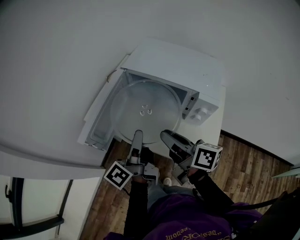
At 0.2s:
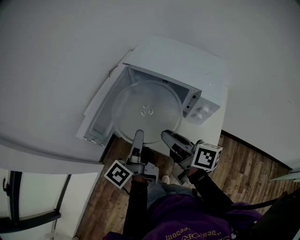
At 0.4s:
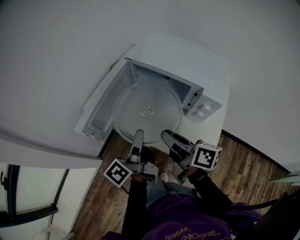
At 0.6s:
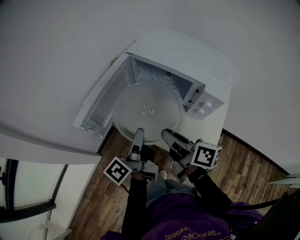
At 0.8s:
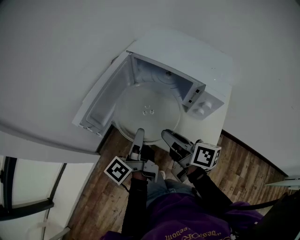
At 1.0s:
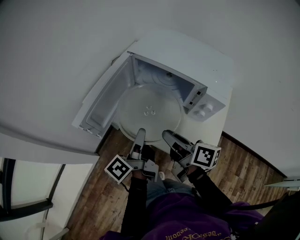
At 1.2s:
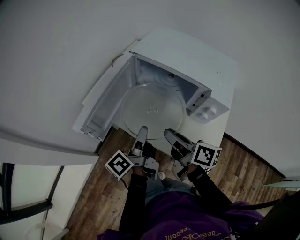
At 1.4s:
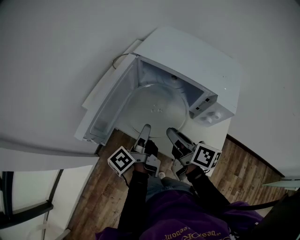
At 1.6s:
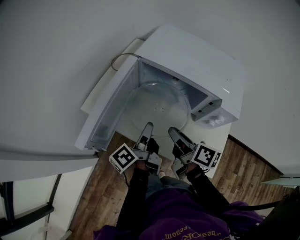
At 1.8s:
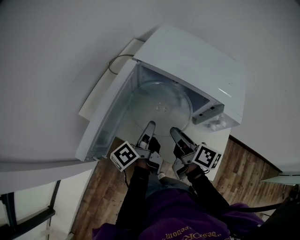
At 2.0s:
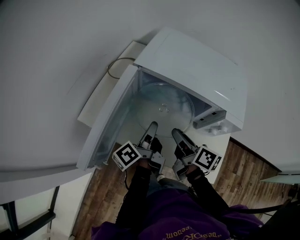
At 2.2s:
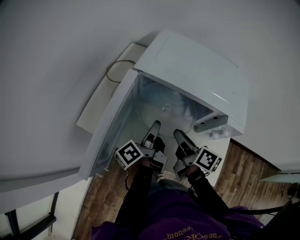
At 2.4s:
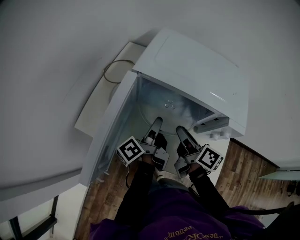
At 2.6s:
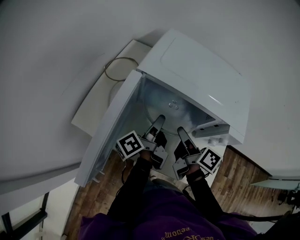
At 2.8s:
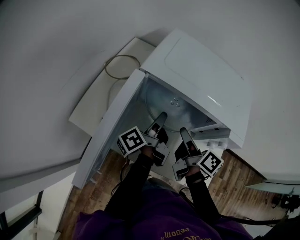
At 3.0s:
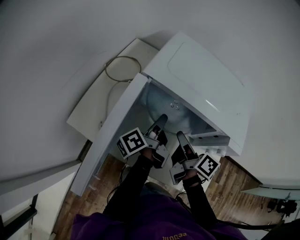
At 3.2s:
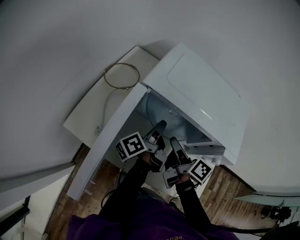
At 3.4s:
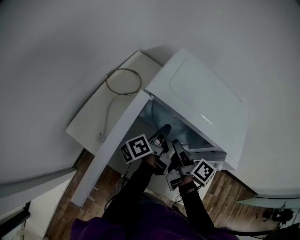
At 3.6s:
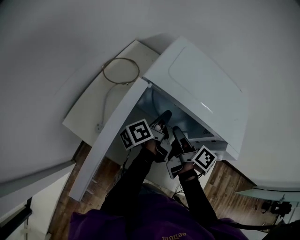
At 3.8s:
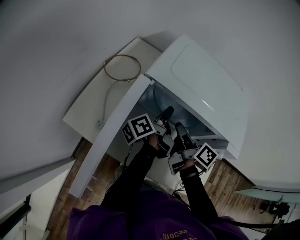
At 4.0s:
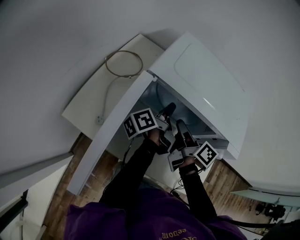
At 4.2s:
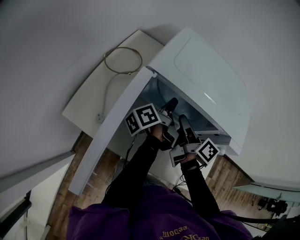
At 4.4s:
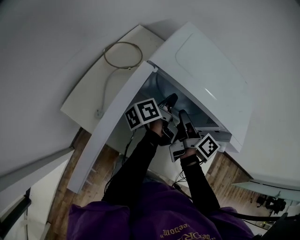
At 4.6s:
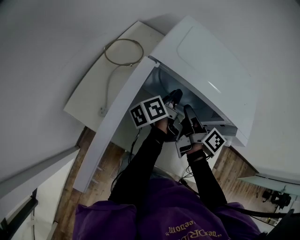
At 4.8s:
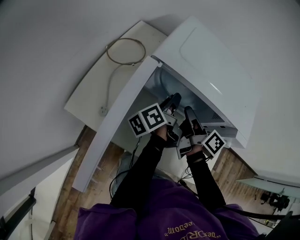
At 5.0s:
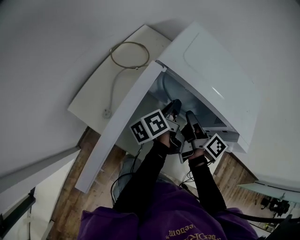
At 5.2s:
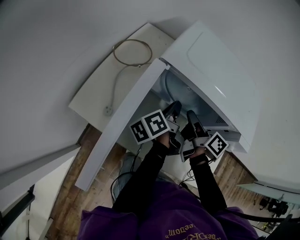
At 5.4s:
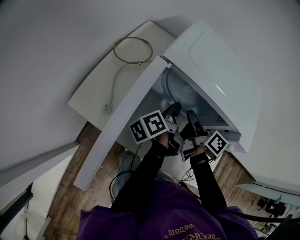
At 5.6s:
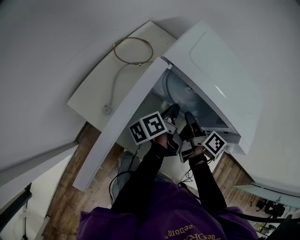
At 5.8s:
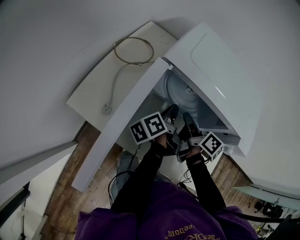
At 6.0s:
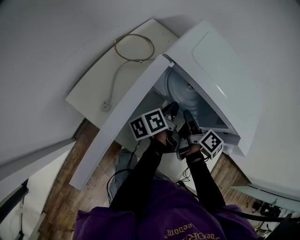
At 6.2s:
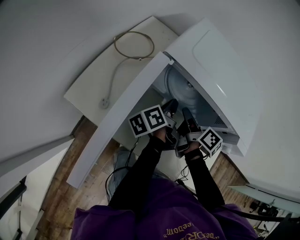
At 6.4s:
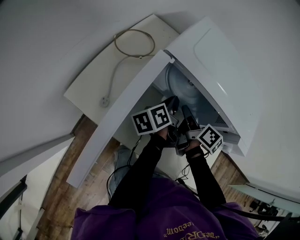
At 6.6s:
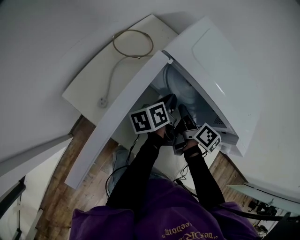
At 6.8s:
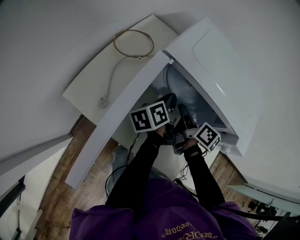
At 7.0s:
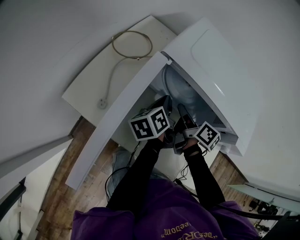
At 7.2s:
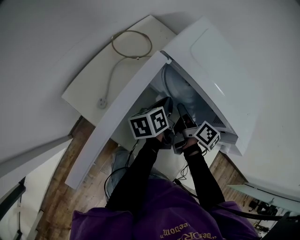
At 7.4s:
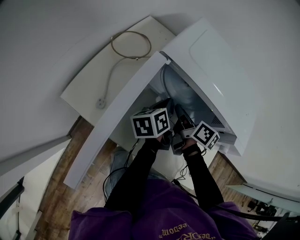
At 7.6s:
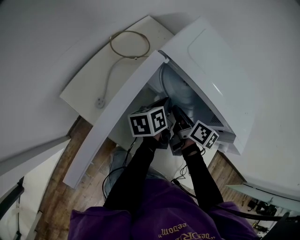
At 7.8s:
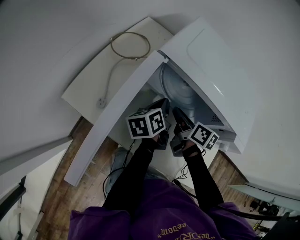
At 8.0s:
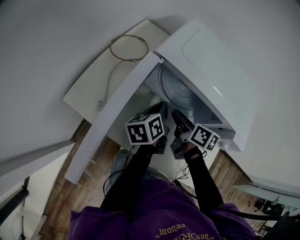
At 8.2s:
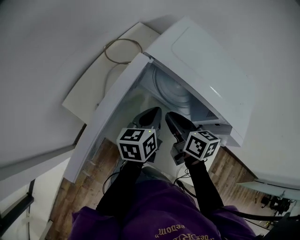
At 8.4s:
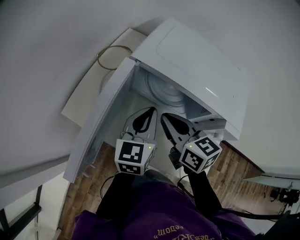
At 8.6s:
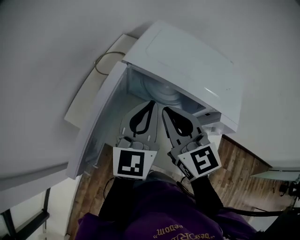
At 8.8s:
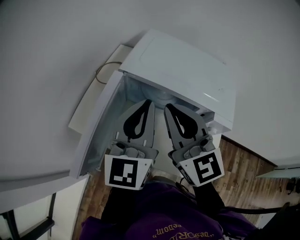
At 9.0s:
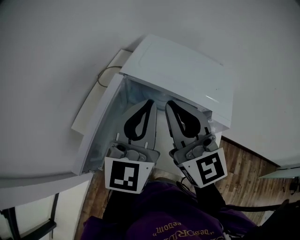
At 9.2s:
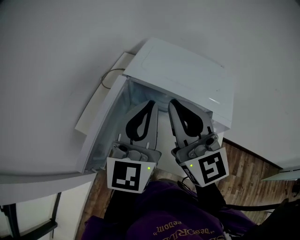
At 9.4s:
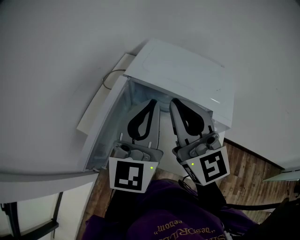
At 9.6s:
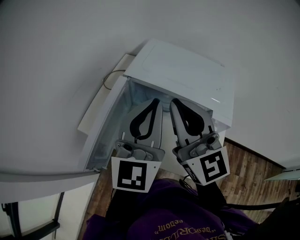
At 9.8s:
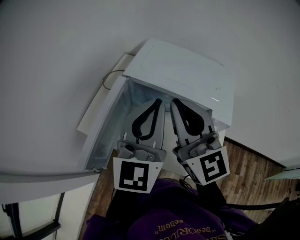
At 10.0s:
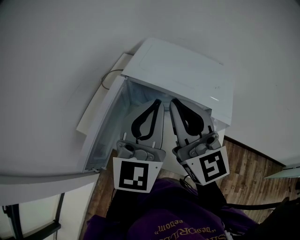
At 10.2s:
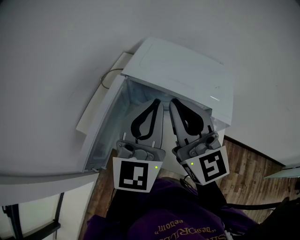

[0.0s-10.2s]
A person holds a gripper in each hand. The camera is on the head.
0.0s to 1.4s: Both grippers travel together downward, some 10 cm.
1.4s to 3.0s: Both grippers travel together forward, approximately 15 cm. The right gripper changes its angle by about 20 degrees.
3.0s to 4.4s: Both grippers travel together forward, about 5 cm.
4.4s to 5.8s: The left gripper shifts by about 5 cm.
5.8s to 7.2s: The grippers stay close to where they were, moving slightly.
7.2s to 8.8s: Both grippers travel together upward, roughly 25 cm. The right gripper rotates around the line of its fingers by roughly 70 degrees, counterclockwise from behind, and closes its fingers. The left gripper rolls clockwise, seen from behind, by some 60 degrees.
8.8s to 10.2s: The right gripper moves about 5 cm; the left gripper changes place by approximately 5 cm.

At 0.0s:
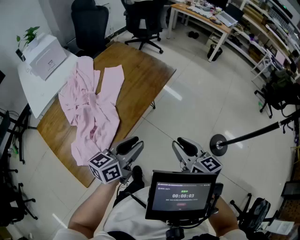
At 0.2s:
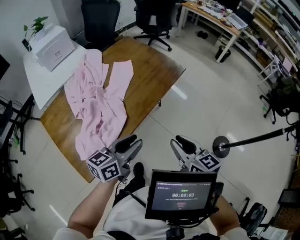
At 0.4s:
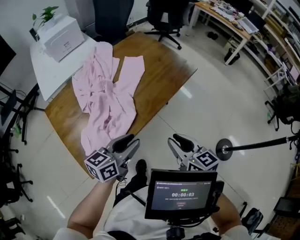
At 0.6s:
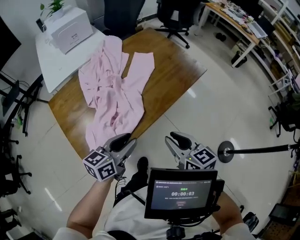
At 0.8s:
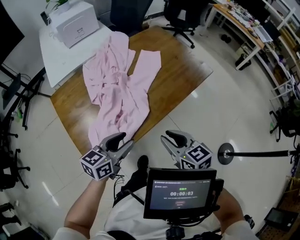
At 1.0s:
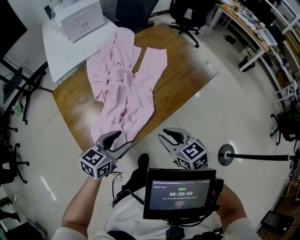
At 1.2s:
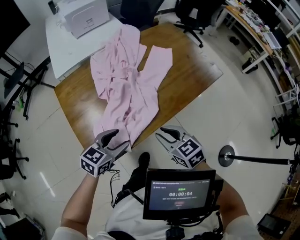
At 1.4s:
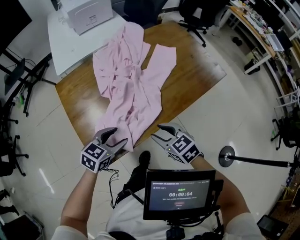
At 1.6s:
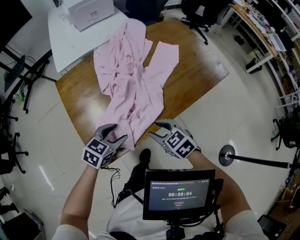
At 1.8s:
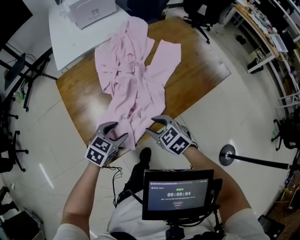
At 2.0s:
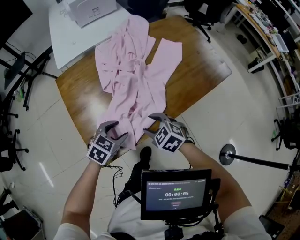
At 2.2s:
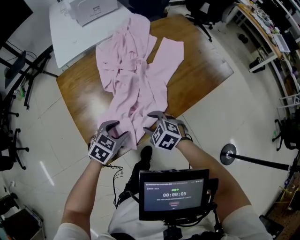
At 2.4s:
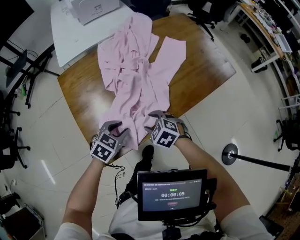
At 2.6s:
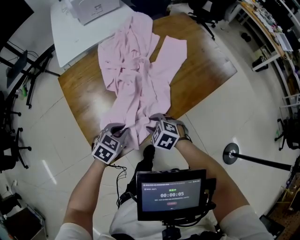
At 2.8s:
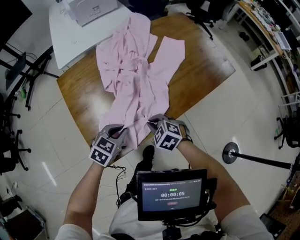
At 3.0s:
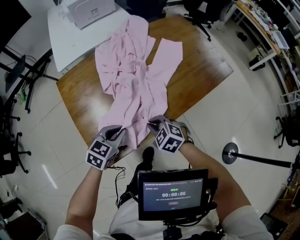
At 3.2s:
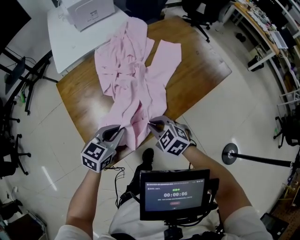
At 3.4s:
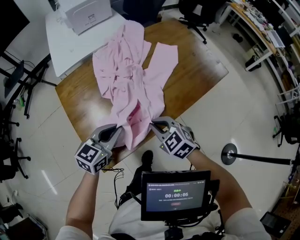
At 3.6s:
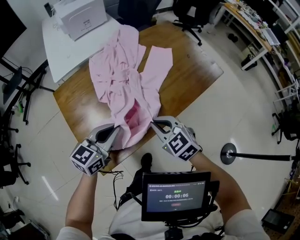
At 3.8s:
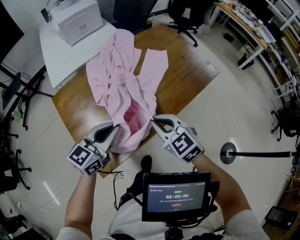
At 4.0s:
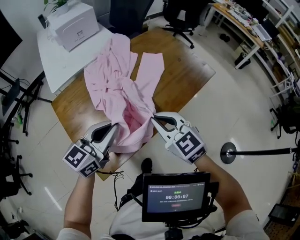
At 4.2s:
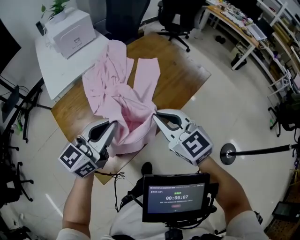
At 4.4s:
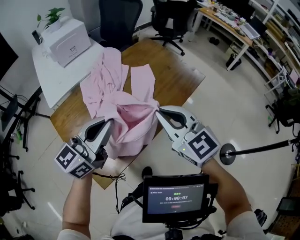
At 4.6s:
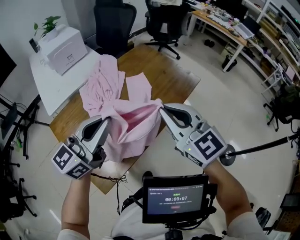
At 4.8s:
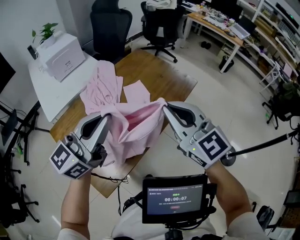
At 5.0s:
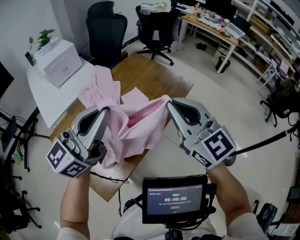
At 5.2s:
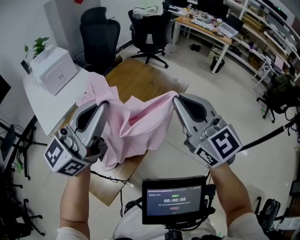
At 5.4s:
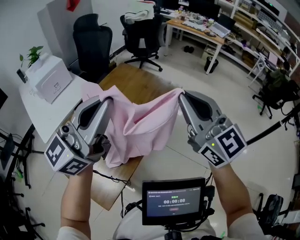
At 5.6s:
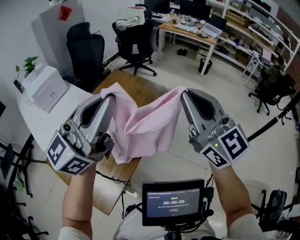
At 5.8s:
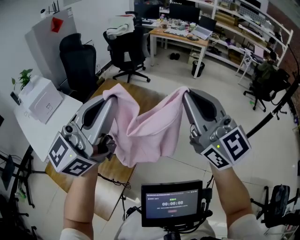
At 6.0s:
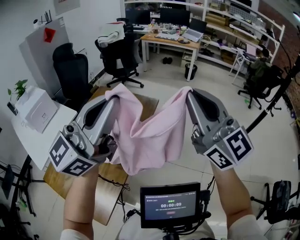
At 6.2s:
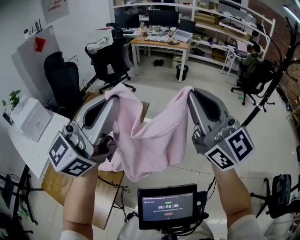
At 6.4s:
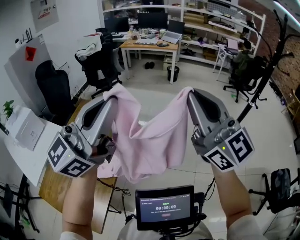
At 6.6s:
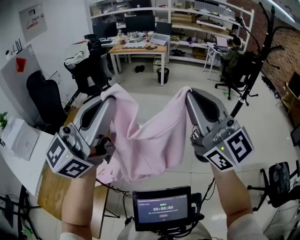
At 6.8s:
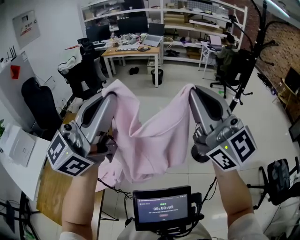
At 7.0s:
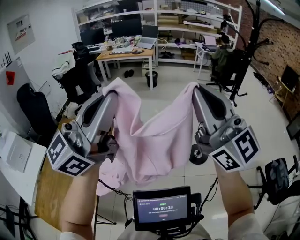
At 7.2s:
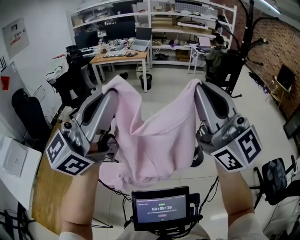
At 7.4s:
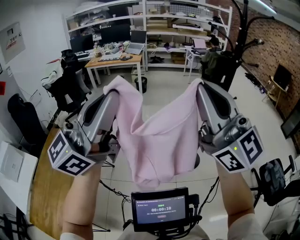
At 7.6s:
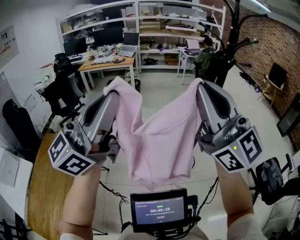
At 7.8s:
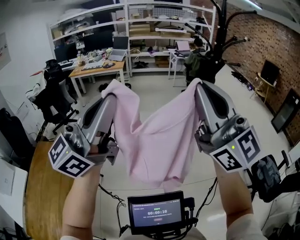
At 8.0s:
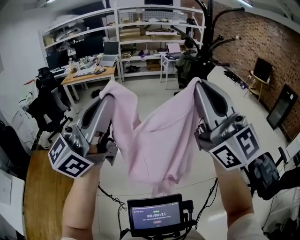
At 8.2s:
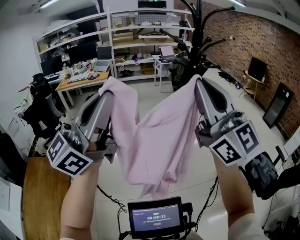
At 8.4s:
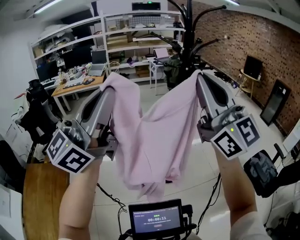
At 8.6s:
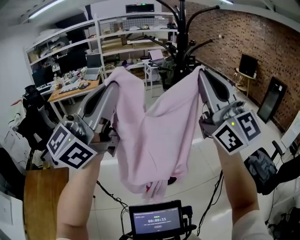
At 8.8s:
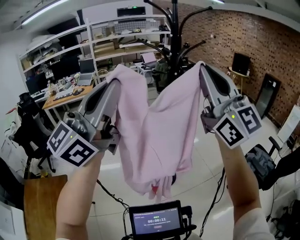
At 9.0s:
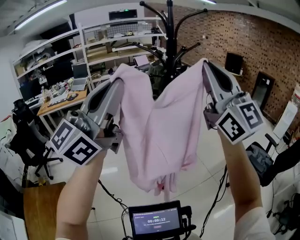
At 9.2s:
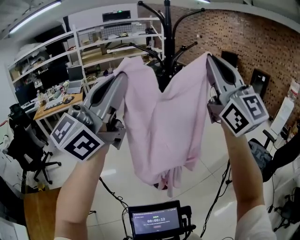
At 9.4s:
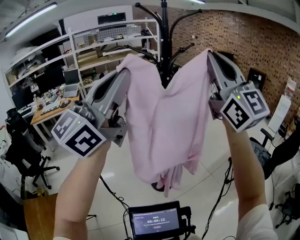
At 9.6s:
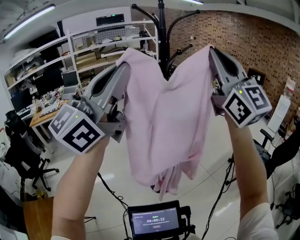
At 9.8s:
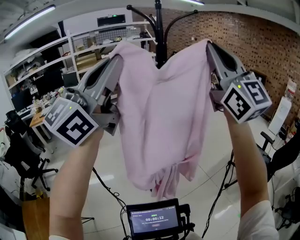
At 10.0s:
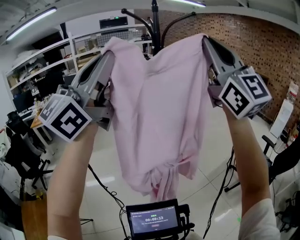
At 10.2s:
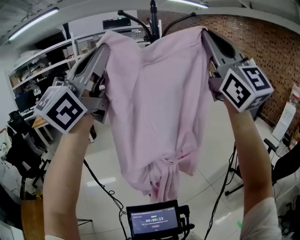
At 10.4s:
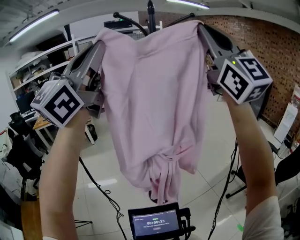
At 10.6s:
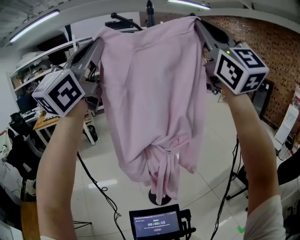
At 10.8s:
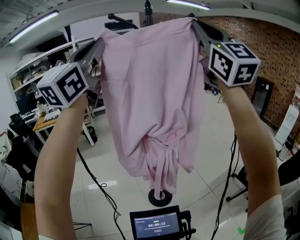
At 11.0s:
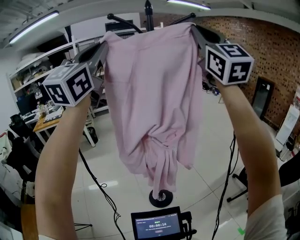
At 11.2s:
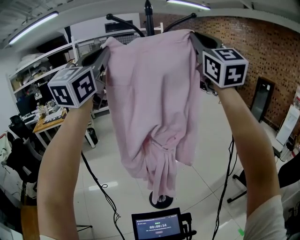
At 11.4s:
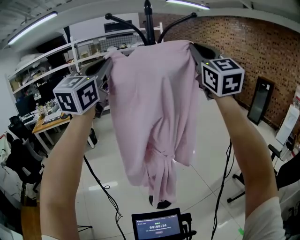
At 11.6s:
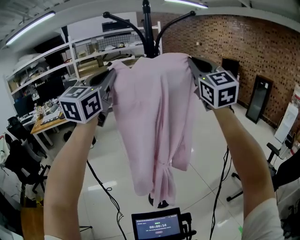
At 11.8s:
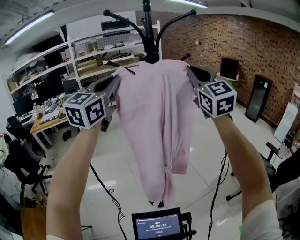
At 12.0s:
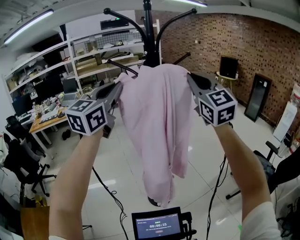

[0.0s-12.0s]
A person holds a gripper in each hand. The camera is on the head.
0.0s to 1.6s: The right gripper moves some 30 cm, and turns by about 60 degrees. The left gripper shifts by about 30 cm, points its fingers some 30 degrees further downward, and opens.
1.6s to 3.0s: The right gripper closes. Meanwhile the left gripper closes its fingers.
3.0s to 4.4s: Both grippers move upward, some 30 cm. The left gripper points its fingers some 40 degrees further upward. Meanwhile the right gripper angles its fingers upward, by roughly 40 degrees.
4.4s to 6.0s: The right gripper shifts by approximately 35 cm, and angles its fingers upward, by some 30 degrees, while the left gripper goes about 25 cm upward, and swivels about 40 degrees.
6.0s to 7.6s: The left gripper goes roughly 35 cm to the right and forward, and turns by approximately 30 degrees. Meanwhile the right gripper is displaced to the right by about 35 cm, and swivels roughly 30 degrees.
7.6s to 9.0s: The right gripper shifts some 25 cm to the right, forward and upward, and changes its angle by about 30 degrees, while the left gripper heads forward, to the right and upward, covering some 25 cm.
9.0s to 10.4s: The left gripper travels upward and forward by roughly 15 cm. Meanwhile the right gripper moves upward, forward and to the right, approximately 15 cm.
10.4s to 12.0s: The left gripper shifts approximately 20 cm forward and downward, and changes its angle by some 20 degrees. The right gripper heads downward and forward, covering some 25 cm, and swivels some 30 degrees.

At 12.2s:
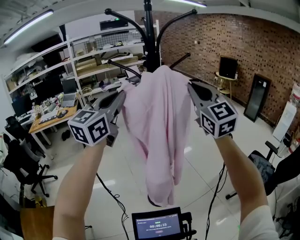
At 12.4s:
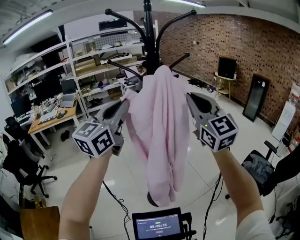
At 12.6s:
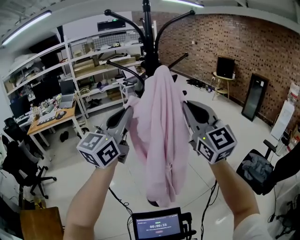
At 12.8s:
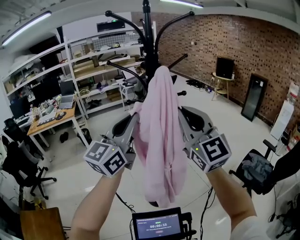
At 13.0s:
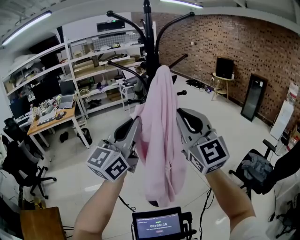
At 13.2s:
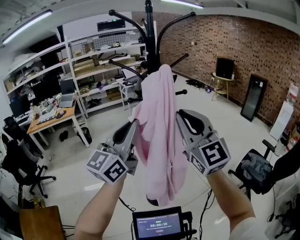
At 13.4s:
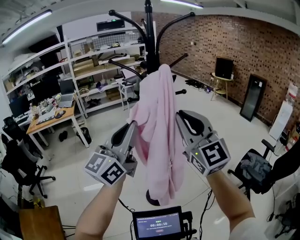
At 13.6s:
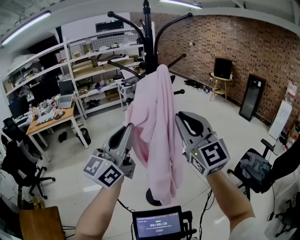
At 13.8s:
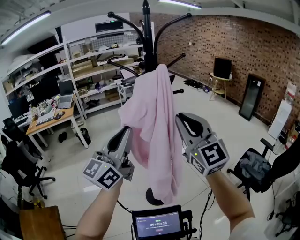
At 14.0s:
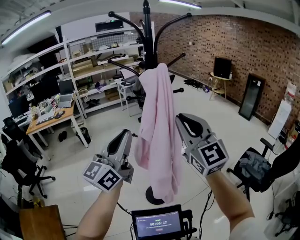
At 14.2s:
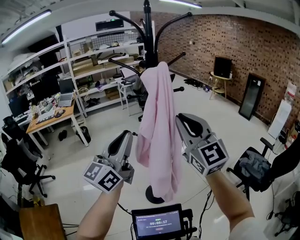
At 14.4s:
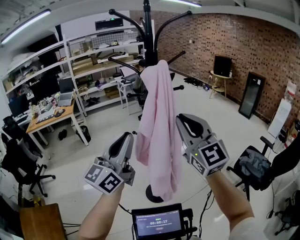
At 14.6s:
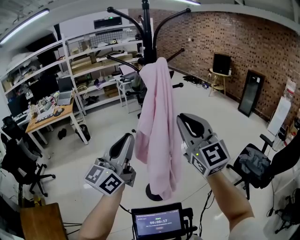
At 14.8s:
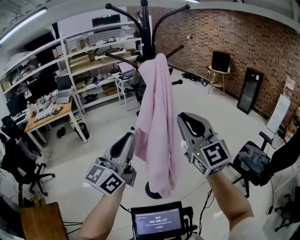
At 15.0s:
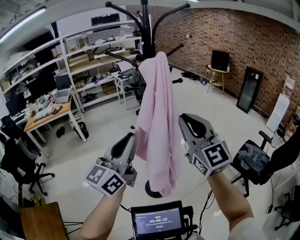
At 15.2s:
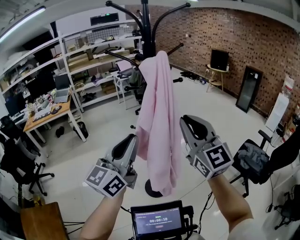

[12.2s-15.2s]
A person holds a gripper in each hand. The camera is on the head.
12.2s to 13.8s: The two grippers go about 15 cm backward and downward. The left gripper rotates approximately 20 degrees.
13.8s to 15.2s: The left gripper changes place by about 5 cm.
